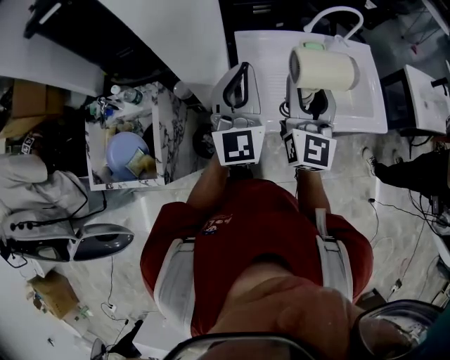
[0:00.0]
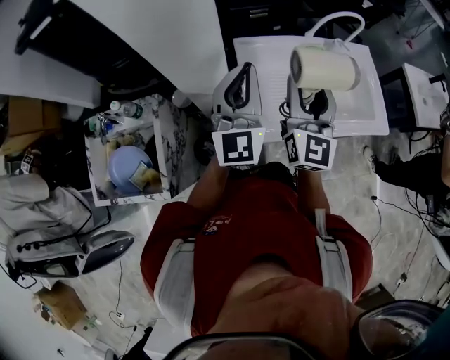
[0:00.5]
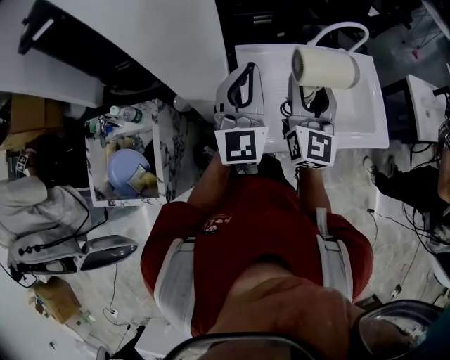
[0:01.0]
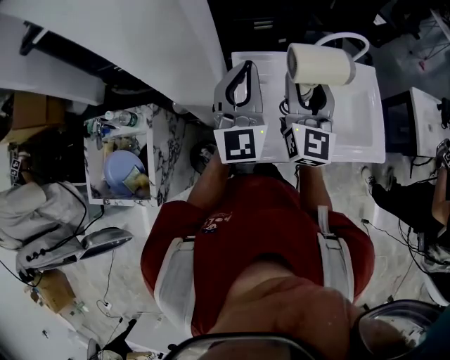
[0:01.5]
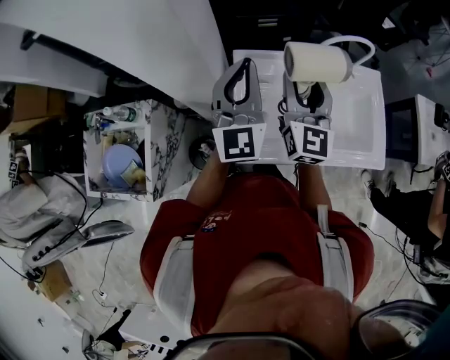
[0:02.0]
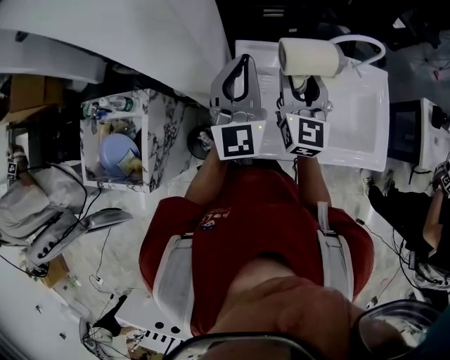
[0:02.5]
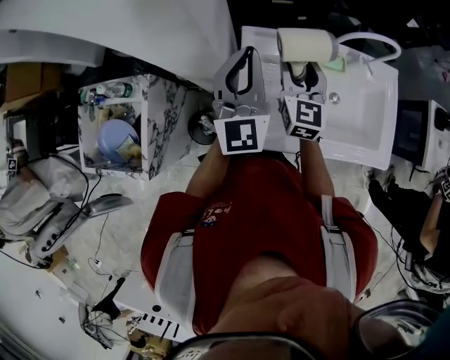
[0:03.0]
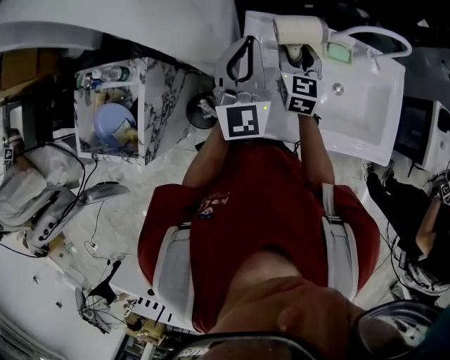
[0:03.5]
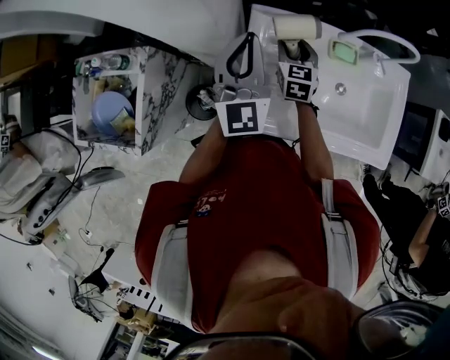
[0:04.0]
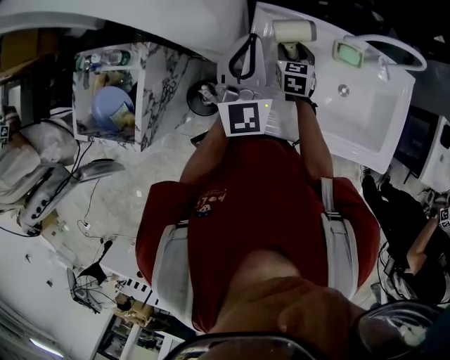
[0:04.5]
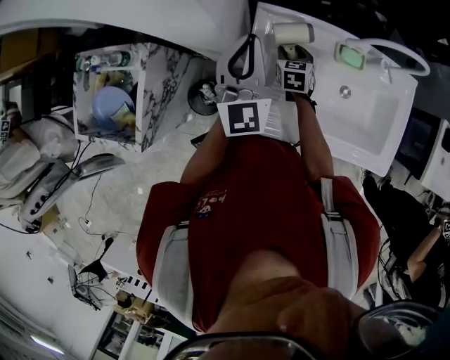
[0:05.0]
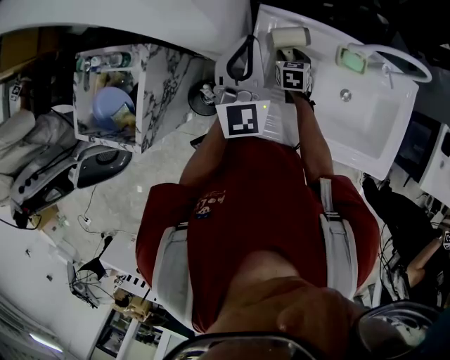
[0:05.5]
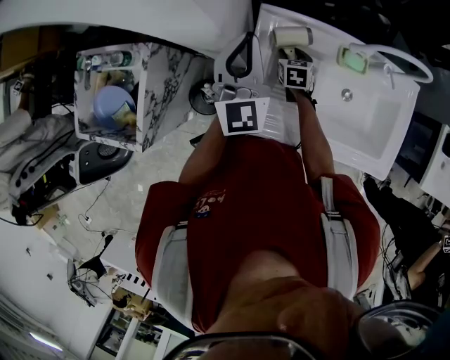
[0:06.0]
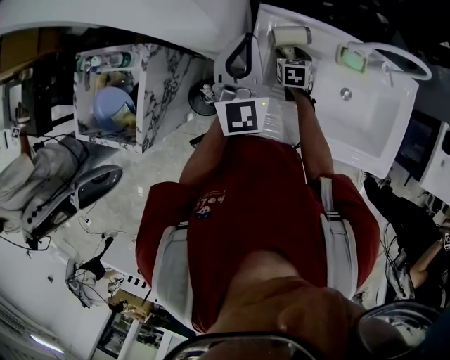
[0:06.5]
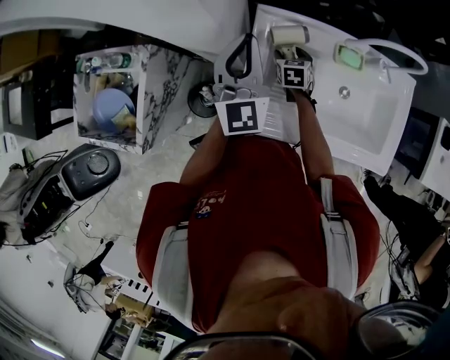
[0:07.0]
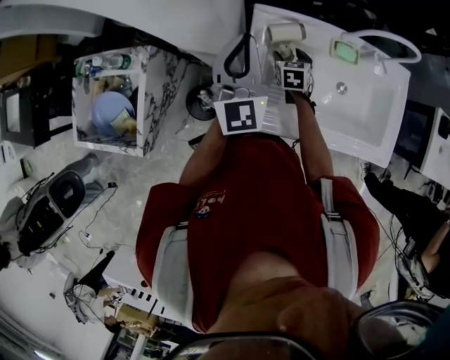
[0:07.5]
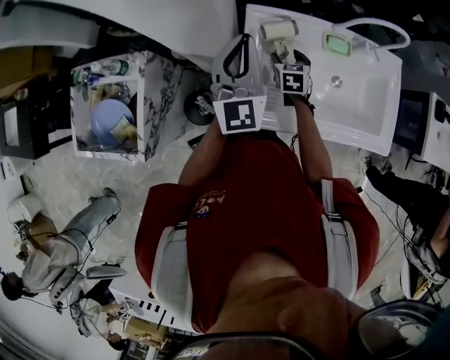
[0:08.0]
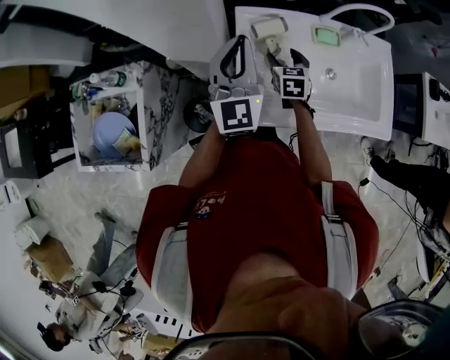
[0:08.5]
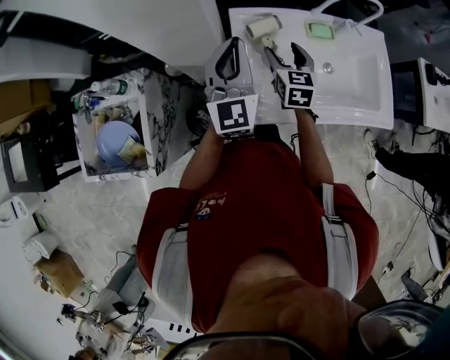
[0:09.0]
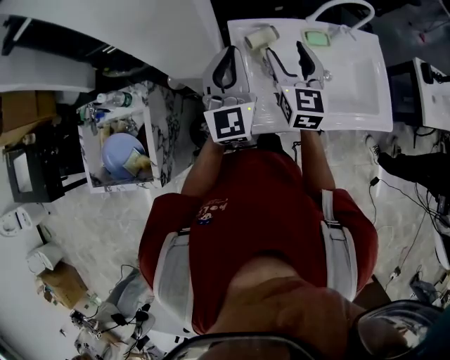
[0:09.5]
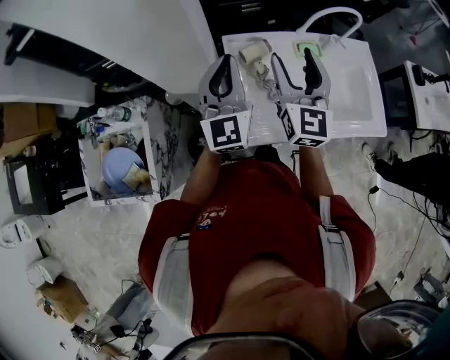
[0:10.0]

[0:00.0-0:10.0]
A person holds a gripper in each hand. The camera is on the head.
0:00.0 to 0:02.0: The two grippers go some 15 cm forward.
0:02.0 to 0:04.0: The right gripper travels downward and forward by approximately 25 cm, and tips its fingers downward by roughly 30 degrees; the left gripper shifts approximately 10 cm downward.
0:04.0 to 0:06.0: The right gripper moves downward, approximately 15 cm, and changes its angle by roughly 20 degrees.
0:06.0 to 0:08.0: The left gripper heads backward, covering about 5 cm, while the right gripper travels upward and backward by about 10 cm, and opens its fingers.
0:08.0 to 0:10.0: The left gripper changes place by some 5 cm; the right gripper is displaced upward by approximately 35 cm, and points its fingers roughly 50 degrees further upward.

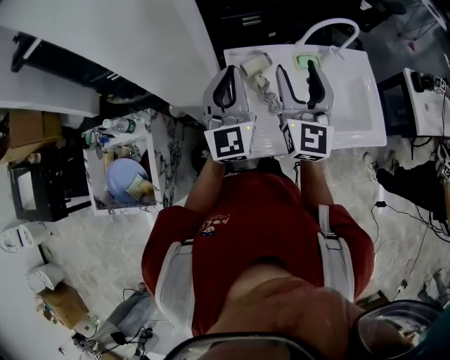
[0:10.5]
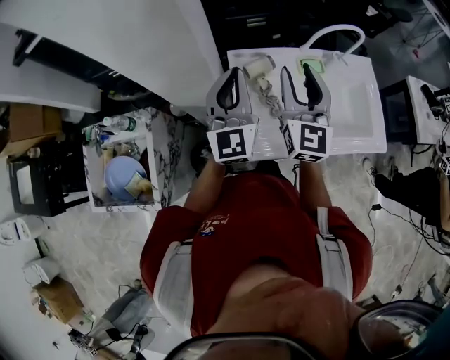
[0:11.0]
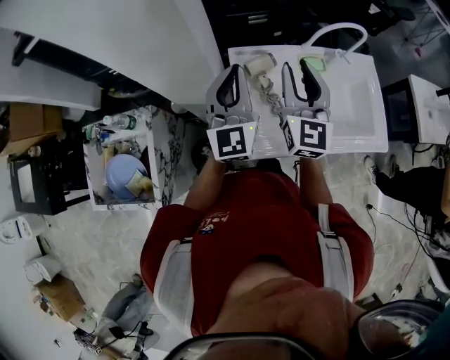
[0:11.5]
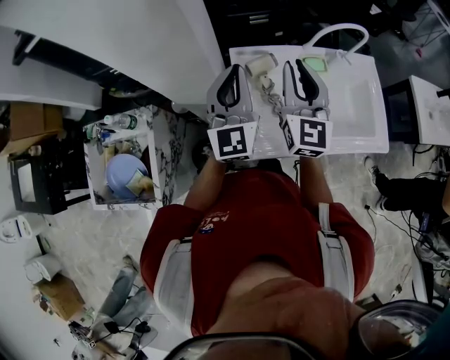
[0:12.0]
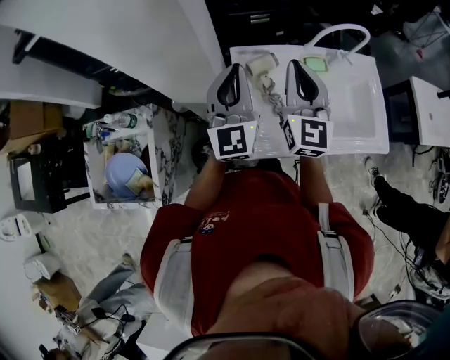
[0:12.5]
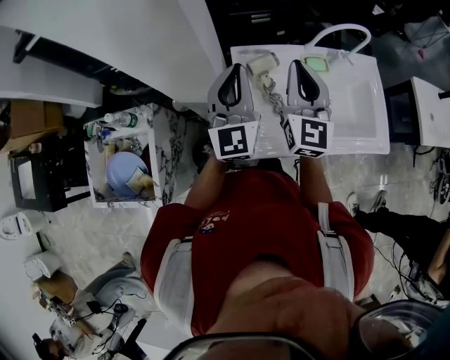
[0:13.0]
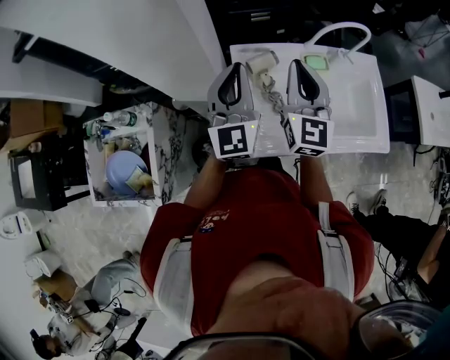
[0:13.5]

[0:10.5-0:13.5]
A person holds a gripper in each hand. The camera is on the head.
0:10.5 to 0:12.0: The right gripper closes its fingers.
0:12.0 to 0:13.5: The two grippers keep their place.

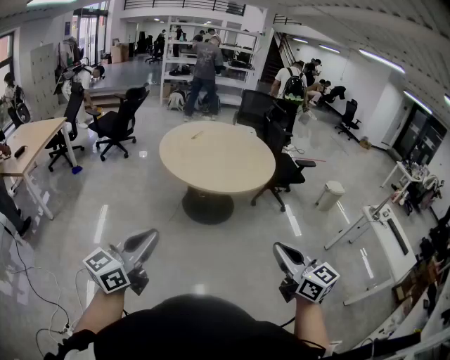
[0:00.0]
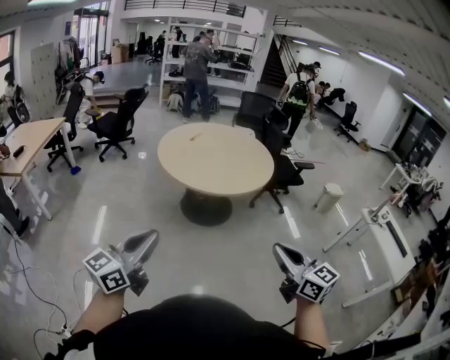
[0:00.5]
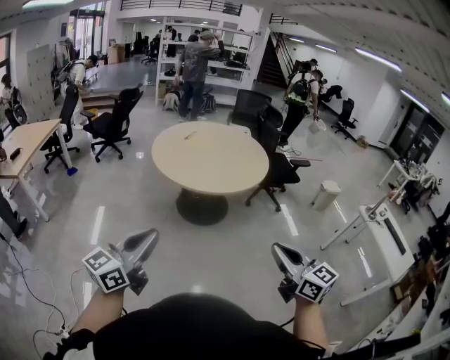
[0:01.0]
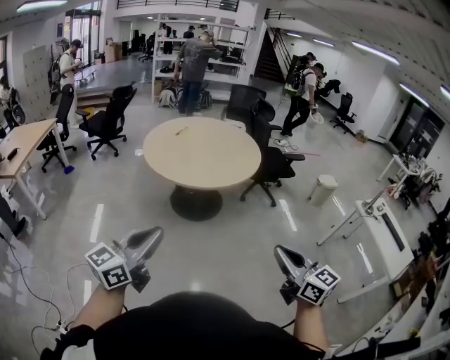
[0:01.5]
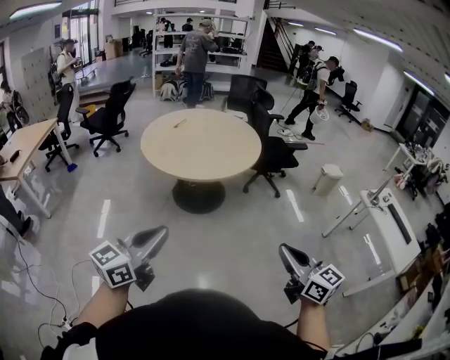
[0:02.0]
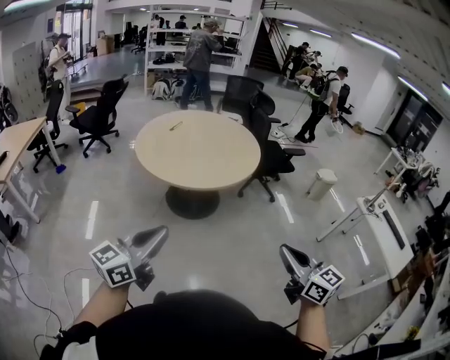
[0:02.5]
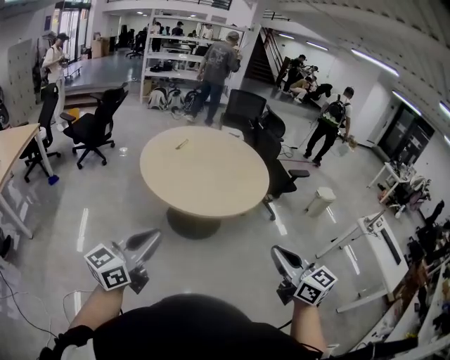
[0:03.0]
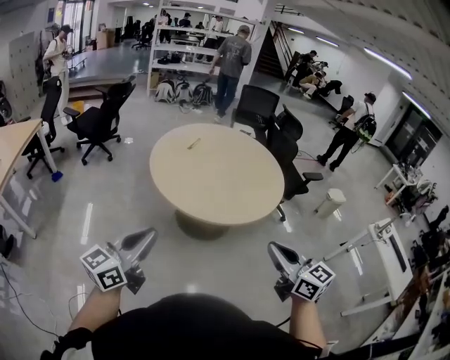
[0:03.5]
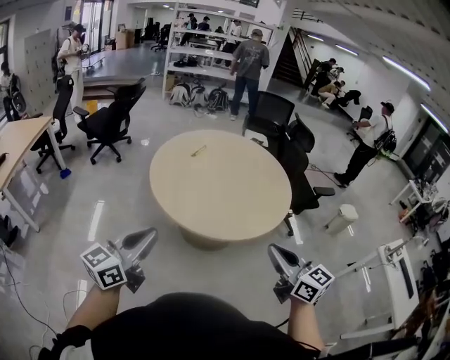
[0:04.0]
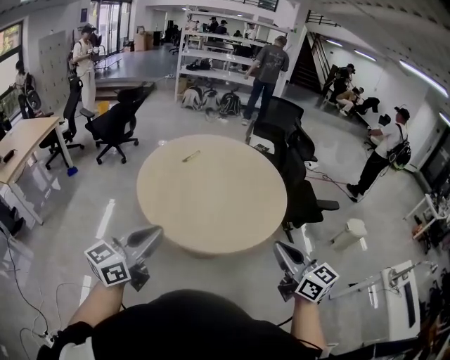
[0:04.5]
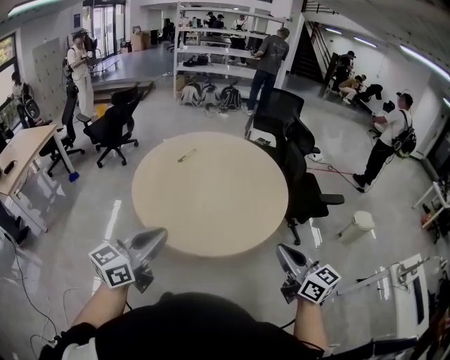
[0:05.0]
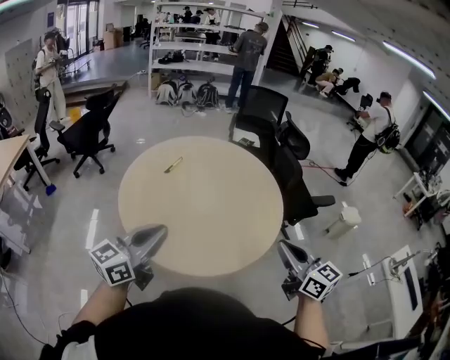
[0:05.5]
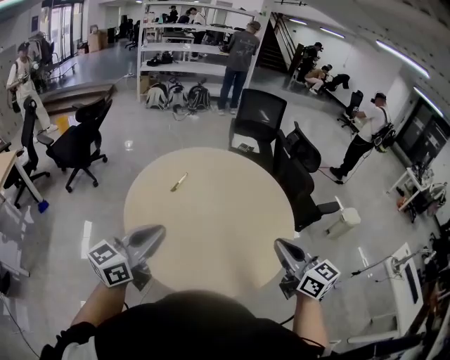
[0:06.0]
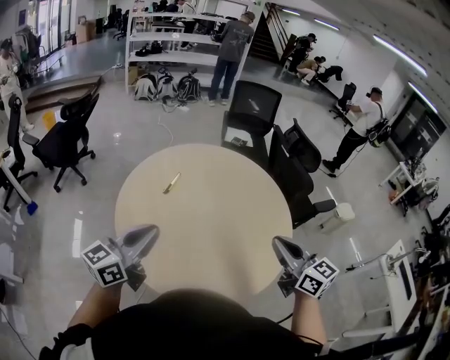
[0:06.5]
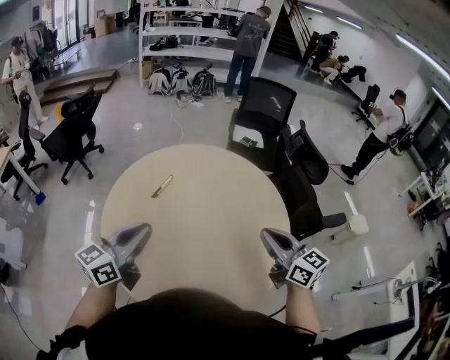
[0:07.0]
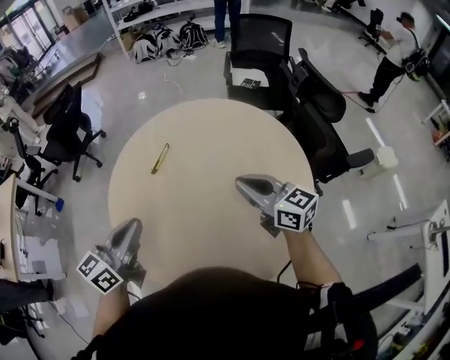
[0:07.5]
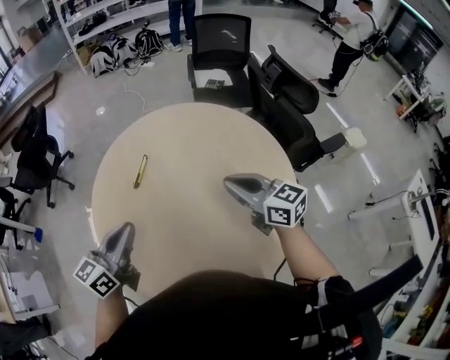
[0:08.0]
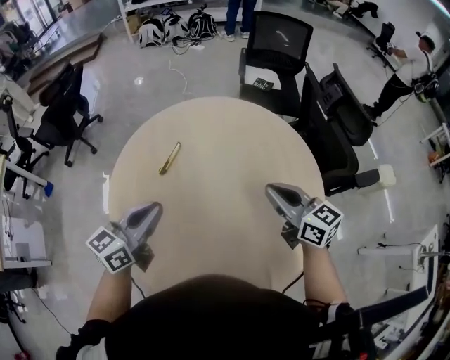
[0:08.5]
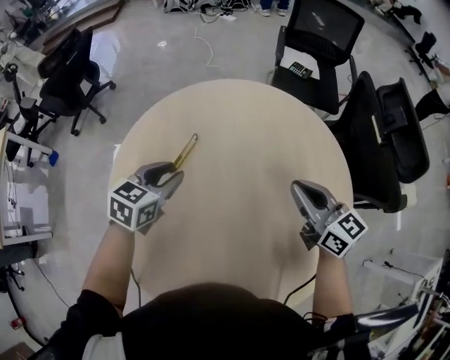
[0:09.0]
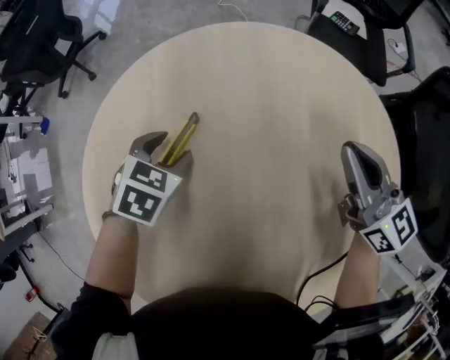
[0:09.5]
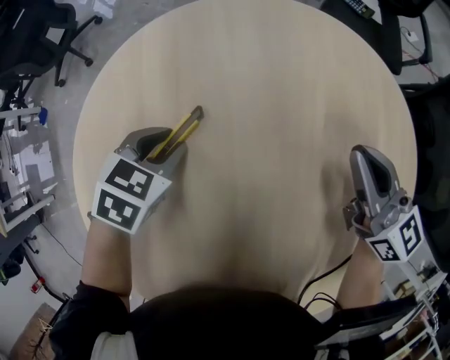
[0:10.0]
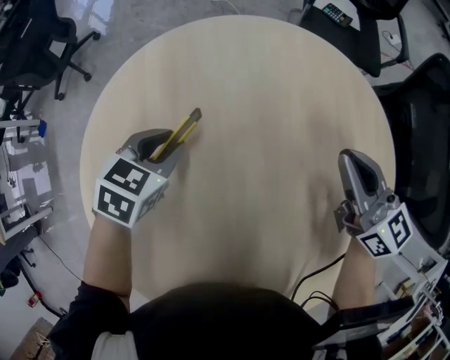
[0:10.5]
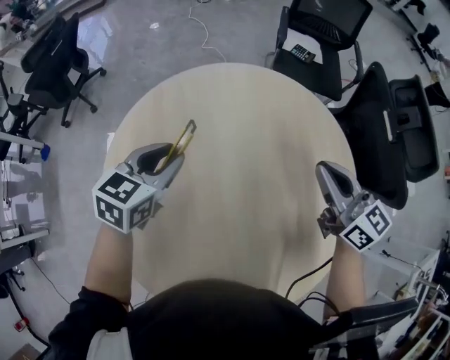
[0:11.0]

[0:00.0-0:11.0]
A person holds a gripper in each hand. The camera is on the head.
0:00.0 to 0:02.0: The two grippers go about 15 cm to the right.
0:02.0 to 0:03.5: The grippers both shift to the left and forward by roughly 40 cm.
0:03.5 to 0:05.5: Both grippers travel together forward and to the right, approximately 40 cm.
0:05.5 to 0:07.5: The grippers both shift forward by about 30 cm.
0:07.5 to 0:09.0: The left gripper shifts approximately 30 cm forward and downward, angles its fingers downward, by approximately 30 degrees, and opens up. Meanwhile the right gripper goes some 20 cm forward and downward.
0:09.0 to 0:11.0: The right gripper travels downward and back again, about 15 cm each way, while the left gripper reaches roughly 20 cm downward, then returns, and opens and closes again.

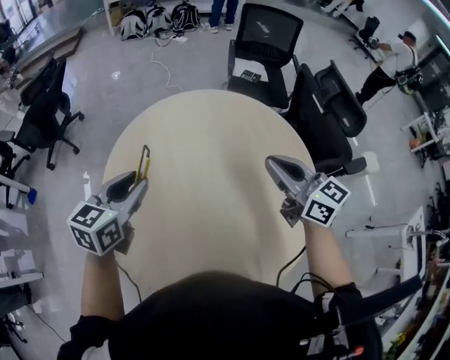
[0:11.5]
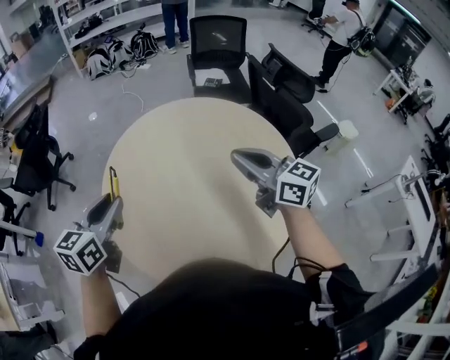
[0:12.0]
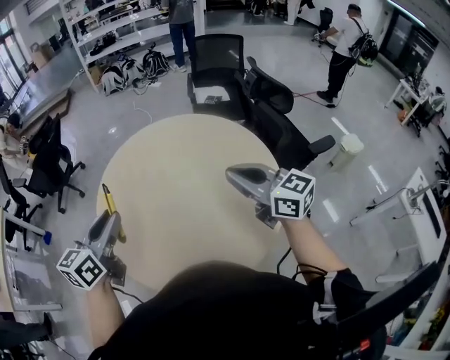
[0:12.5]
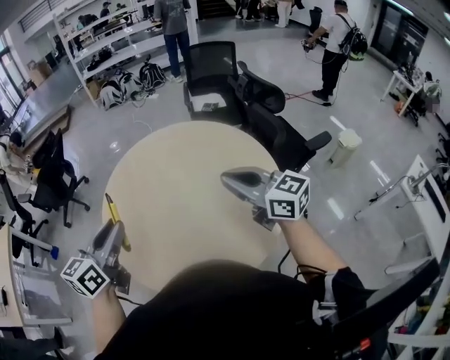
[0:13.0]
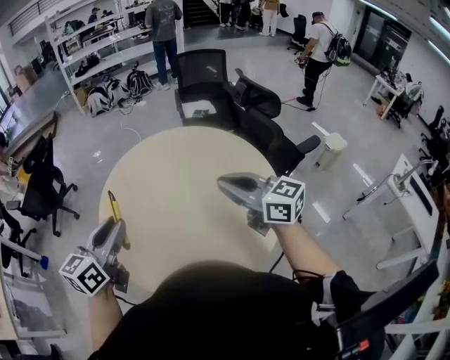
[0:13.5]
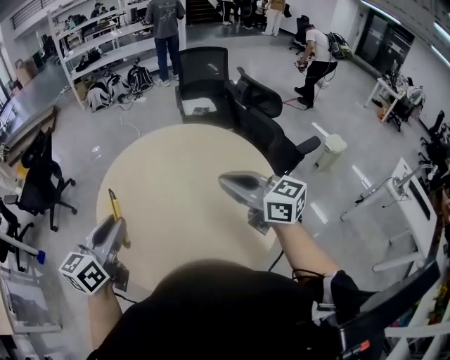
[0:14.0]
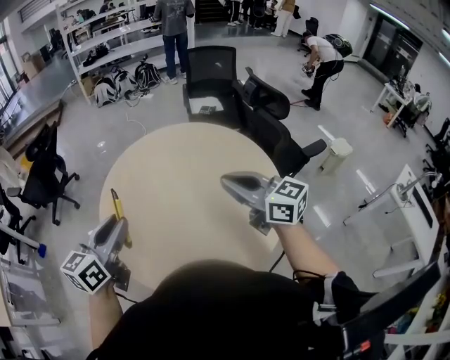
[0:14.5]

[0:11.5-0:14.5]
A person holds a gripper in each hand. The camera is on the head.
0:11.5 to 0:13.0: The right gripper moves backward, about 20 cm; the left gripper travels backward and upward by roughly 25 cm.
0:13.0 to 0:14.5: The right gripper travels to the left by approximately 5 cm.
